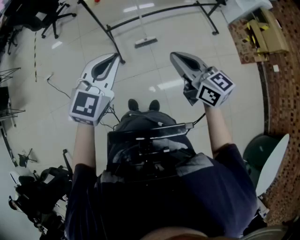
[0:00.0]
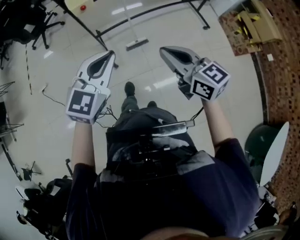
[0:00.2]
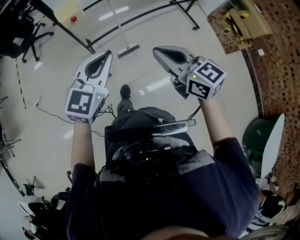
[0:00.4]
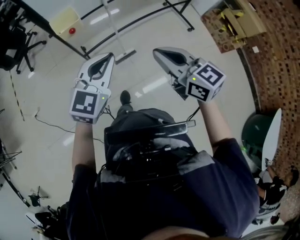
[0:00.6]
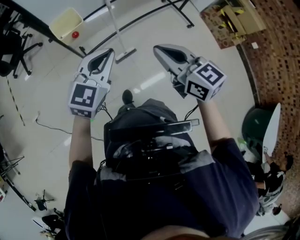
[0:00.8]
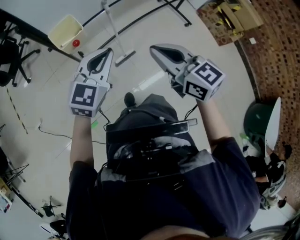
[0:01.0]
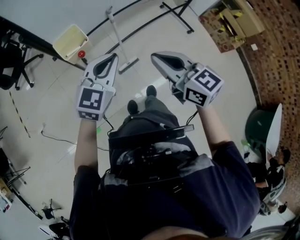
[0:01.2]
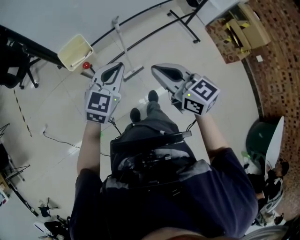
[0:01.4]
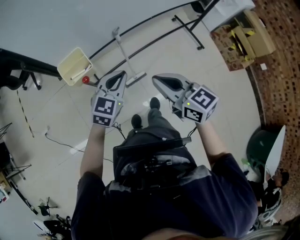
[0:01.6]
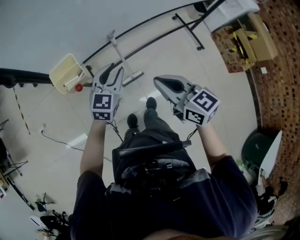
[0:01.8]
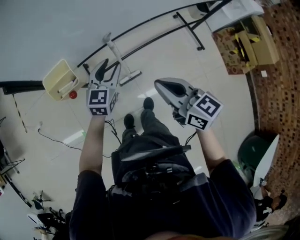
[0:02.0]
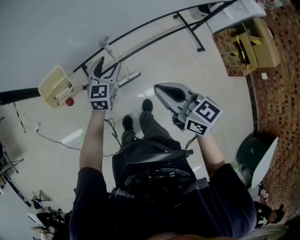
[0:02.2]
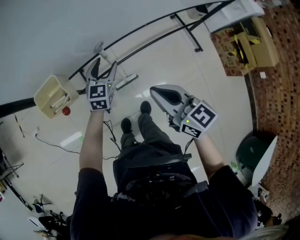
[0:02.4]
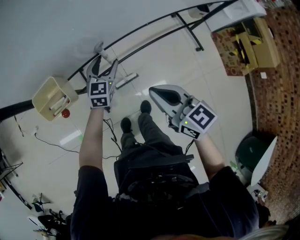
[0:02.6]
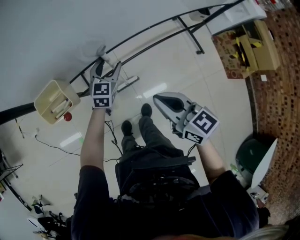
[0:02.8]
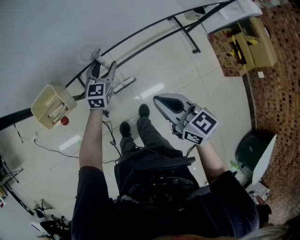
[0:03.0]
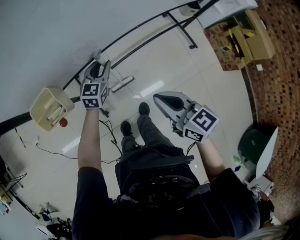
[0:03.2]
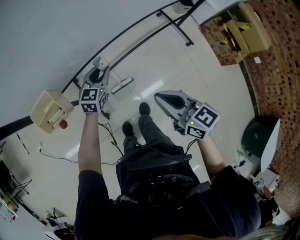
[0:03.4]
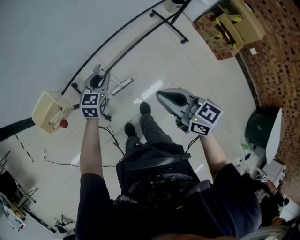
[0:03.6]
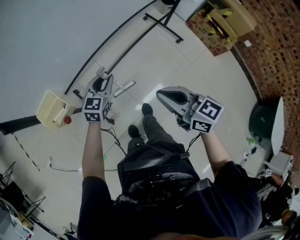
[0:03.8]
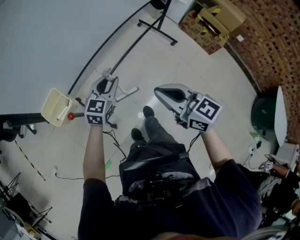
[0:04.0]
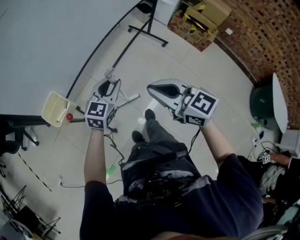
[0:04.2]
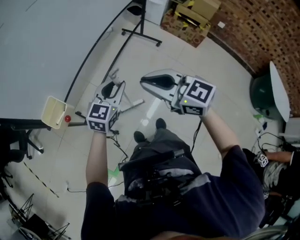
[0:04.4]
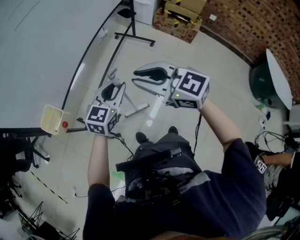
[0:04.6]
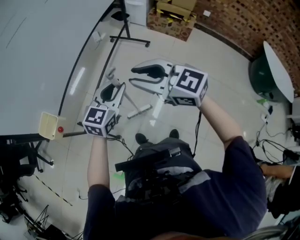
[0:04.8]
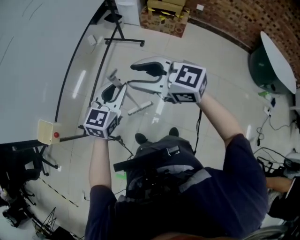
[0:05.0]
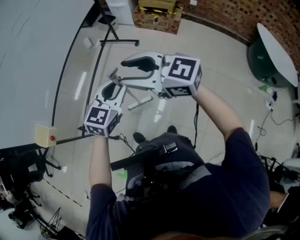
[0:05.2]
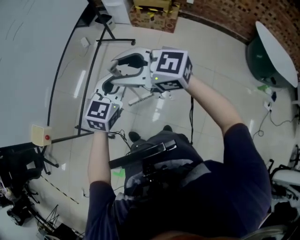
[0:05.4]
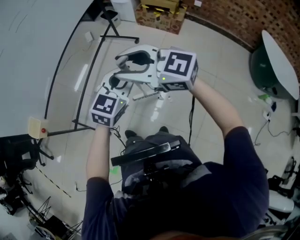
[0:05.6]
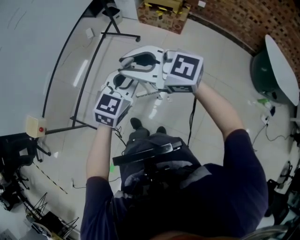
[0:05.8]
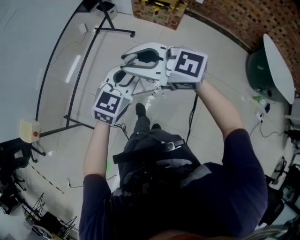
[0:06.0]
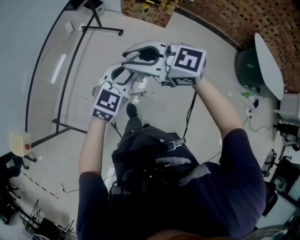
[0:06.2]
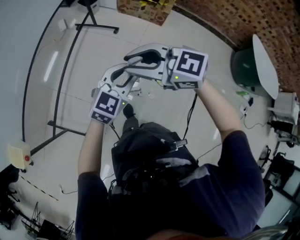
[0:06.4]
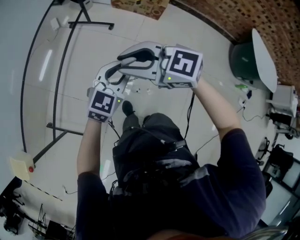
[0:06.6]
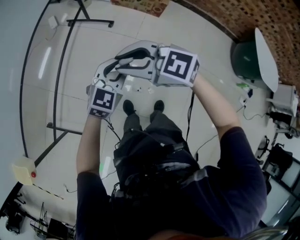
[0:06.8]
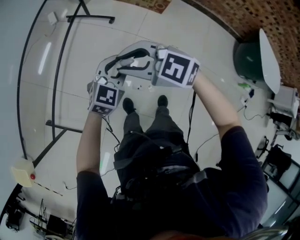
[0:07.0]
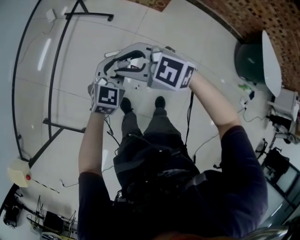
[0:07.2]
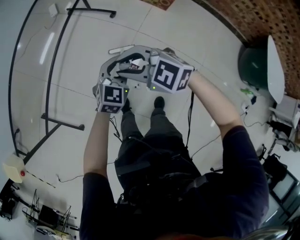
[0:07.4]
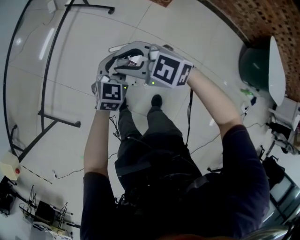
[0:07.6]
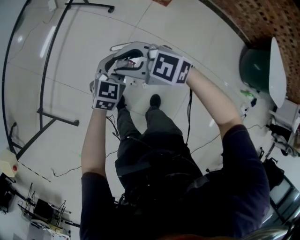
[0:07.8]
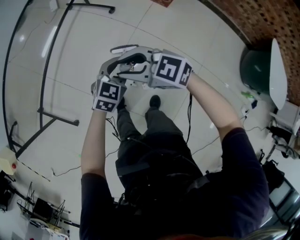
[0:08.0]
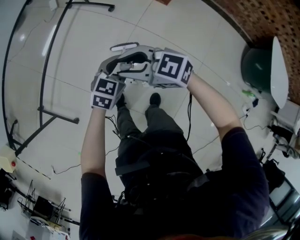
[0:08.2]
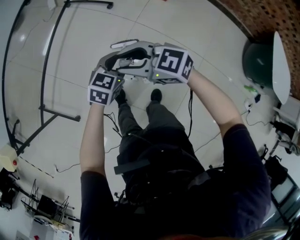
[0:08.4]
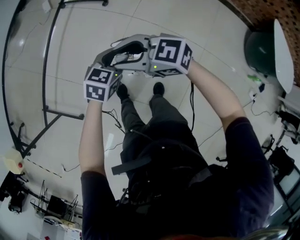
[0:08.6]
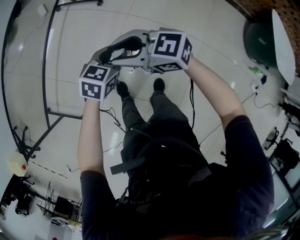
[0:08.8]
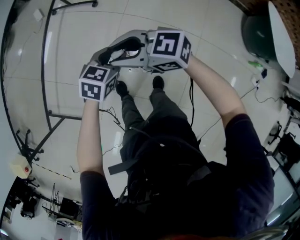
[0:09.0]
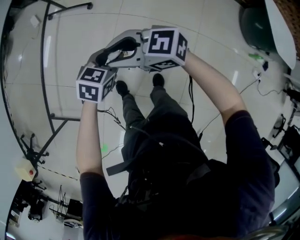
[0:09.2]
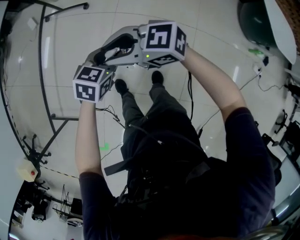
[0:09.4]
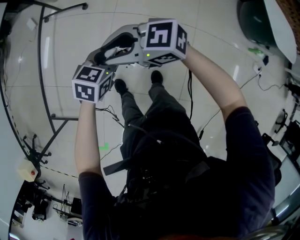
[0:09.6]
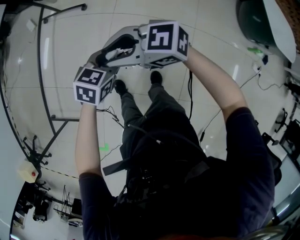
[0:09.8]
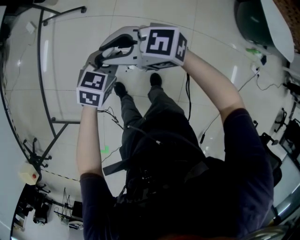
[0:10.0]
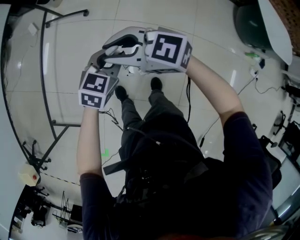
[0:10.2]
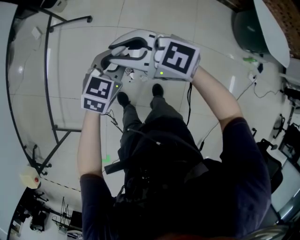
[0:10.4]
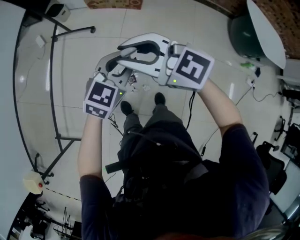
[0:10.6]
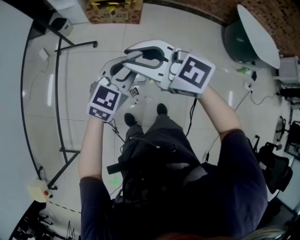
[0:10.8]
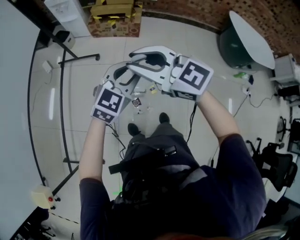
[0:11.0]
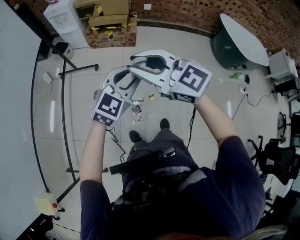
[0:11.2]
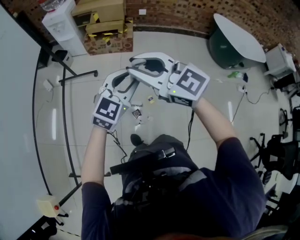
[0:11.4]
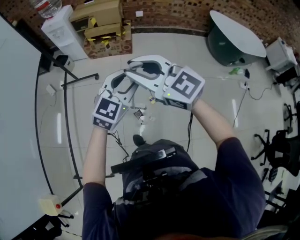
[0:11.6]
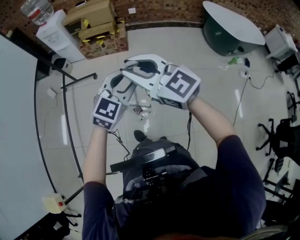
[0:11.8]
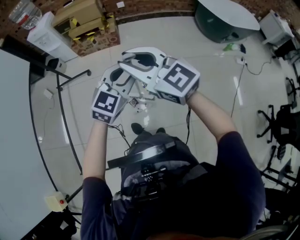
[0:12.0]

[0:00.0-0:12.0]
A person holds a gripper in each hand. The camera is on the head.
0:00.0 to 0:01.6: The grippers both shift forward by about 30 cm.
0:01.6 to 0:03.0: The left gripper goes approximately 25 cm forward and downward, and opens its fingers; the right gripper shifts about 10 cm downward, to the right and forward.
0:03.0 to 0:04.4: The left gripper ends up approximately 35 cm from where it was, changes its angle by approximately 40 degrees, and closes up; the right gripper heads upward, covering some 15 cm, and changes its angle by approximately 20 degrees.
0:04.4 to 0:06.0: Both grippers travel together to the right, approximately 35 cm. The right gripper opens and closes again.
0:06.0 to 0:07.6: Both grippers move downward and forward, some 30 cm. The right gripper swivels approximately 20 degrees.
0:07.6 to 0:09.0: The left gripper changes place by about 10 cm, and swivels some 30 degrees. The right gripper changes place by about 10 cm, and swivels some 20 degrees.
0:09.0 to 0:10.4: Both grippers travel together upward, some 10 cm. The right gripper turns by approximately 20 degrees.
0:10.4 to 0:12.0: The grippers both shift upward by some 20 cm. The right gripper turns by some 40 degrees. Meanwhile the left gripper changes its angle by roughly 30 degrees.

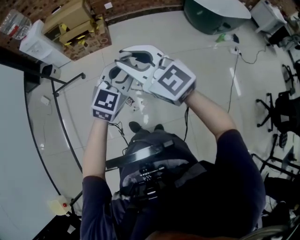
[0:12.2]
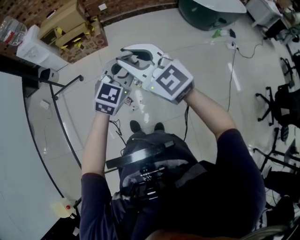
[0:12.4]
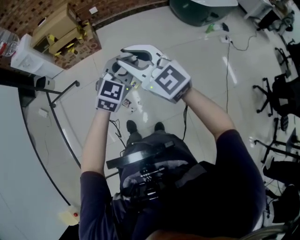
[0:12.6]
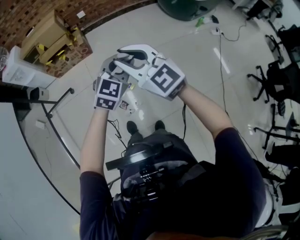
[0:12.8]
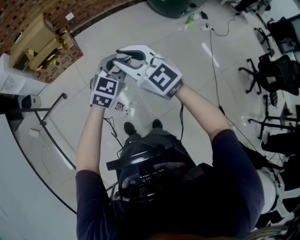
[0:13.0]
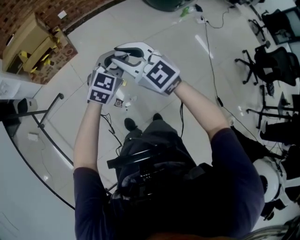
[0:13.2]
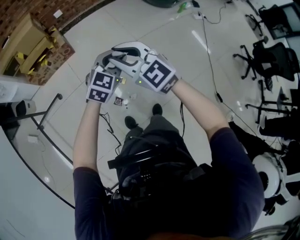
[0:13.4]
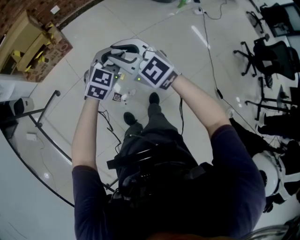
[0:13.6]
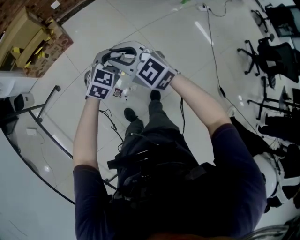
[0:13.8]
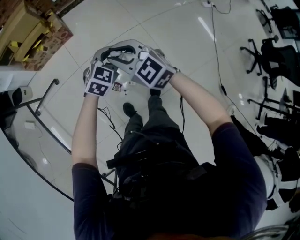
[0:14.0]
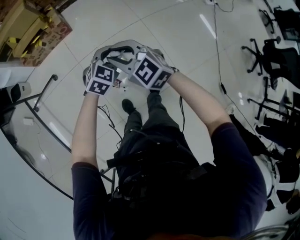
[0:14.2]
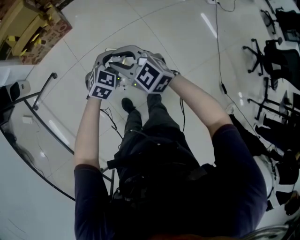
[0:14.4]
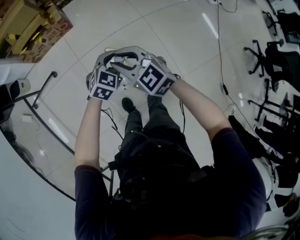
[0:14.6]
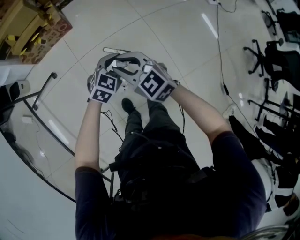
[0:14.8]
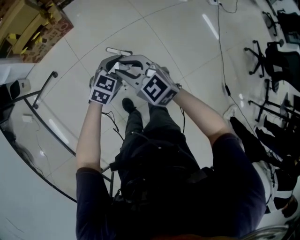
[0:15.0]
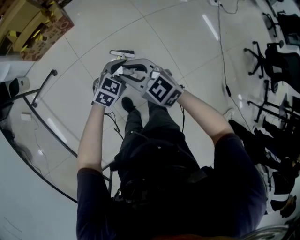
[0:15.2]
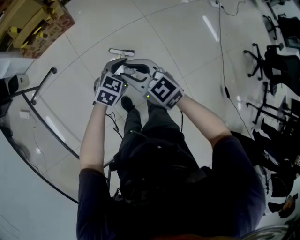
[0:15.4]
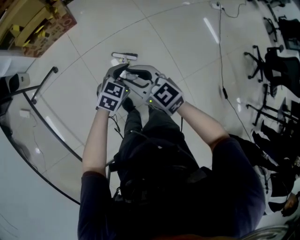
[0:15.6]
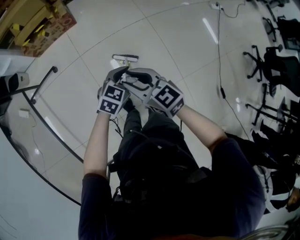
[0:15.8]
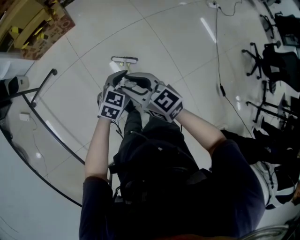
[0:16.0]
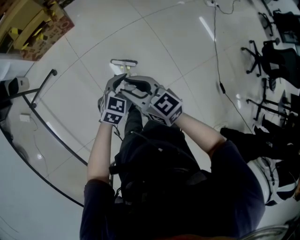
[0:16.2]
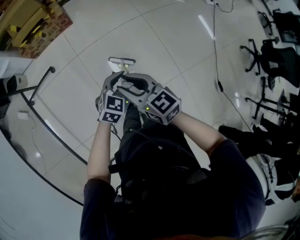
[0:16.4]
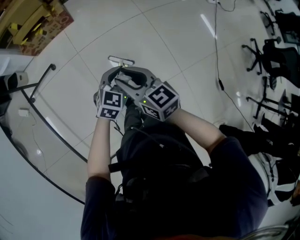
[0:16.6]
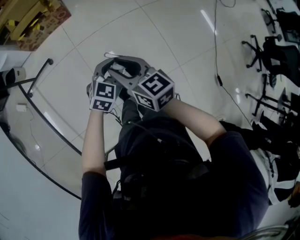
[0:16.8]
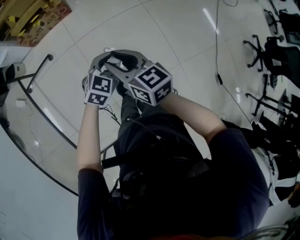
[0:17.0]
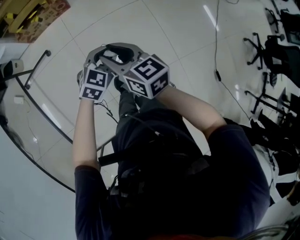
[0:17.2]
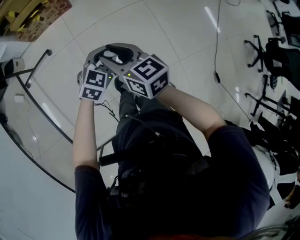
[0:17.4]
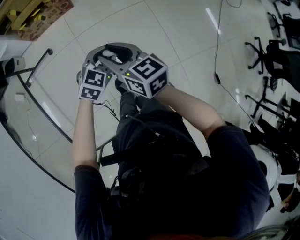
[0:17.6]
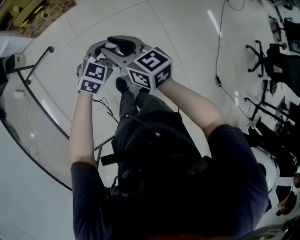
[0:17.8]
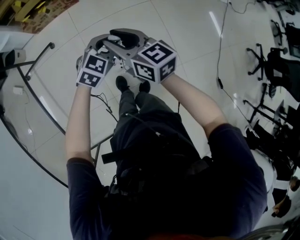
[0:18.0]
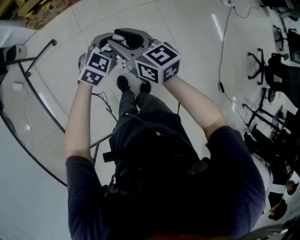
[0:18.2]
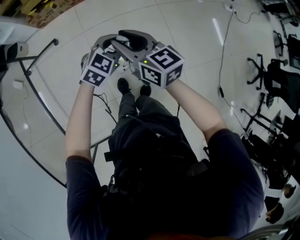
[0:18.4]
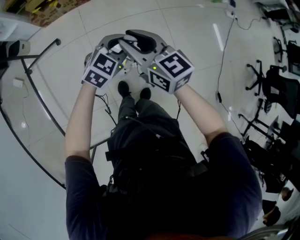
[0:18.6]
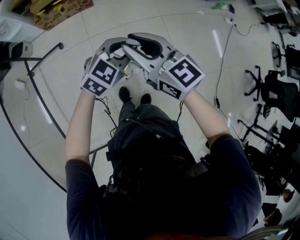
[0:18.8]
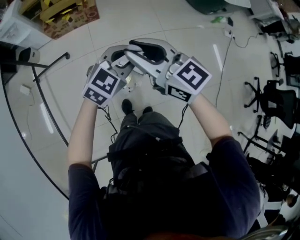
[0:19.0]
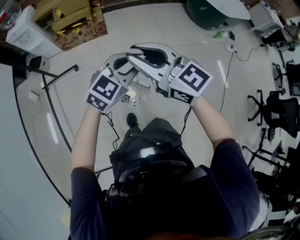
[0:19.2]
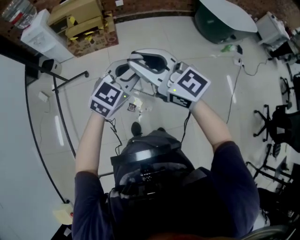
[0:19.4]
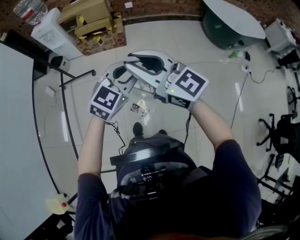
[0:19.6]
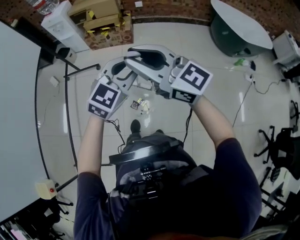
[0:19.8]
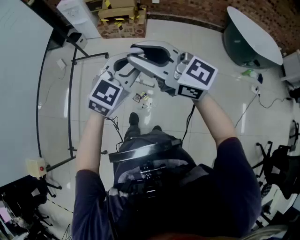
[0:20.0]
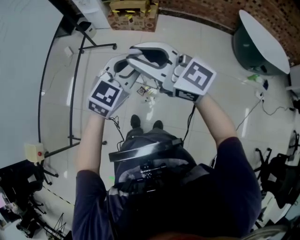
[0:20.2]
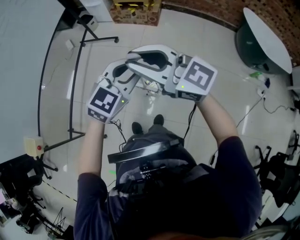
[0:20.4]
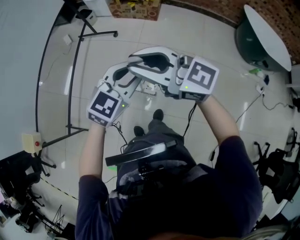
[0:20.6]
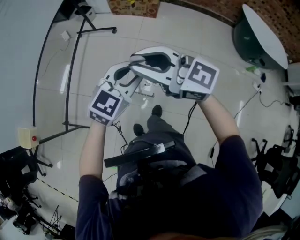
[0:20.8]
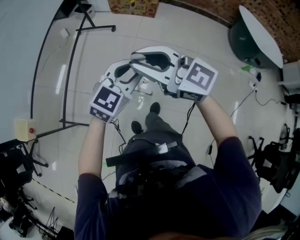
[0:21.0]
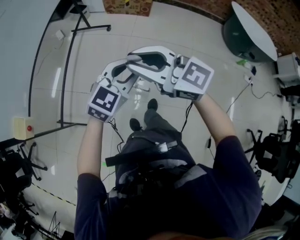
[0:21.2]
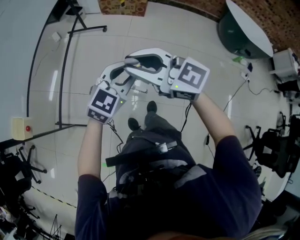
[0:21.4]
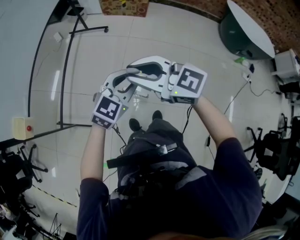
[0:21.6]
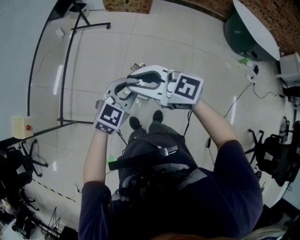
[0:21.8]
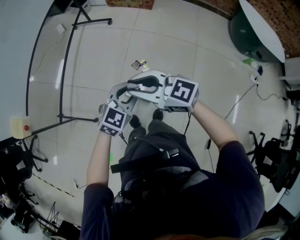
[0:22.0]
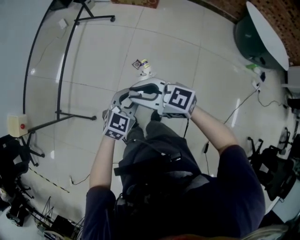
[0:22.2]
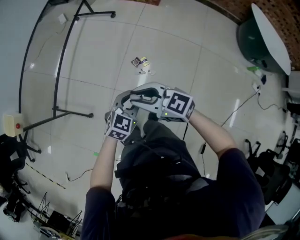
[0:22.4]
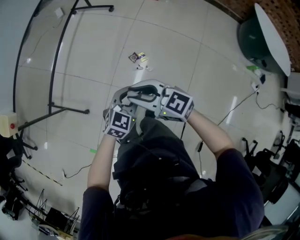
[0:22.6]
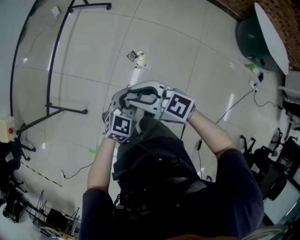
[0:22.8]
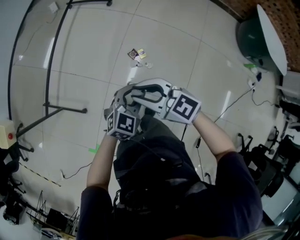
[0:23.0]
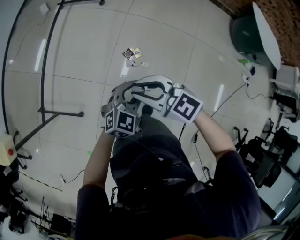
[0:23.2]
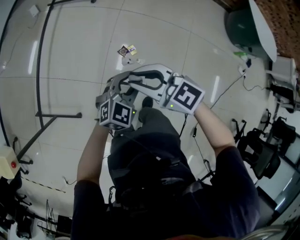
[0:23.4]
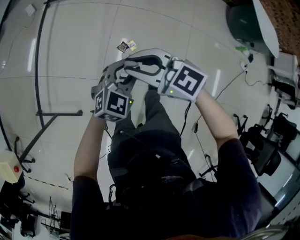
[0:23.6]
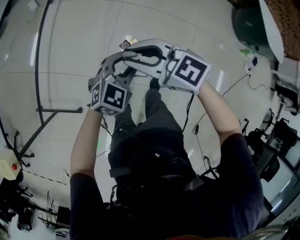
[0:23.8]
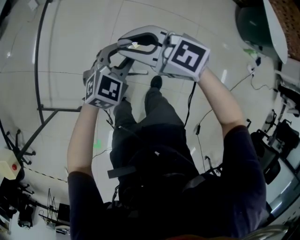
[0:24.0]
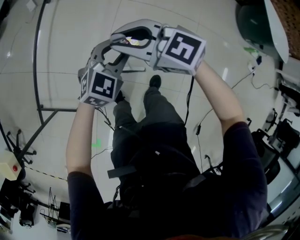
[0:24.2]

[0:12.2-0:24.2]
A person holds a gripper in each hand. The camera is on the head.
0:12.2 to 0:13.8: Both grippers move downward and forward, roughly 25 cm. The right gripper turns by roughly 30 degrees, while the left gripper turns by approximately 20 degrees.
0:13.8 to 0:15.2: Both grippers move downward and backward, approximately 10 cm.
0:15.2 to 0:16.6: Both grippers travel together backward, about 10 cm. The right gripper swivels approximately 30 degrees.
0:16.6 to 0:18.2: Both grippers move forward, about 10 cm.
0:18.2 to 0:19.8: The two grippers go some 30 cm upward. The left gripper rotates approximately 30 degrees; the right gripper changes its angle by about 50 degrees.
0:19.8 to 0:21.2: The grippers both shift backward and to the left by roughly 30 cm. The right gripper changes its angle by roughly 20 degrees.
0:21.2 to 0:22.6: Both grippers travel together downward, approximately 20 cm. The right gripper rotates some 20 degrees; the left gripper turns by approximately 20 degrees.
0:22.6 to 0:24.2: Both grippers move forward, some 25 cm.
